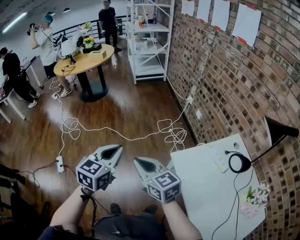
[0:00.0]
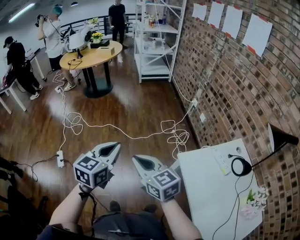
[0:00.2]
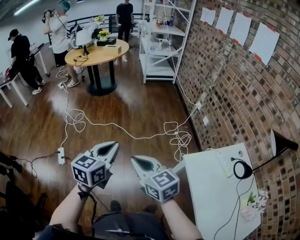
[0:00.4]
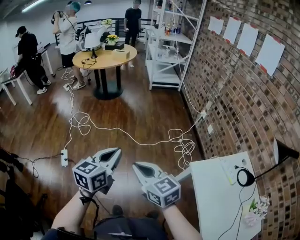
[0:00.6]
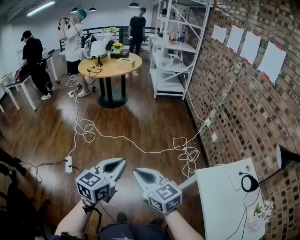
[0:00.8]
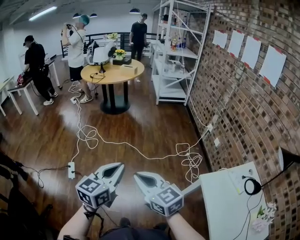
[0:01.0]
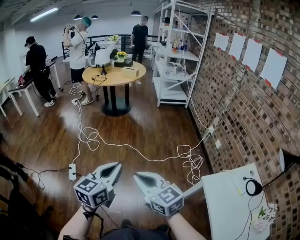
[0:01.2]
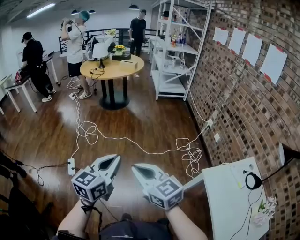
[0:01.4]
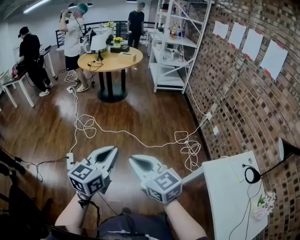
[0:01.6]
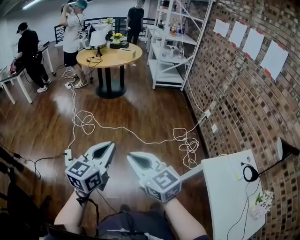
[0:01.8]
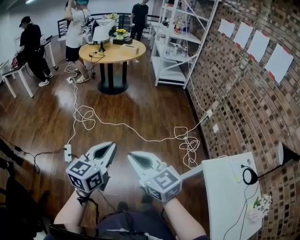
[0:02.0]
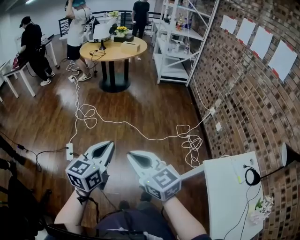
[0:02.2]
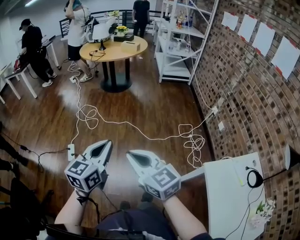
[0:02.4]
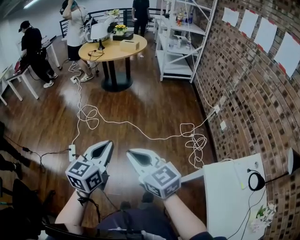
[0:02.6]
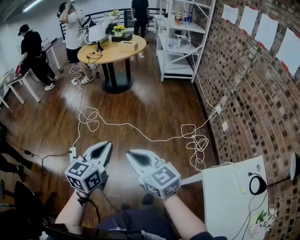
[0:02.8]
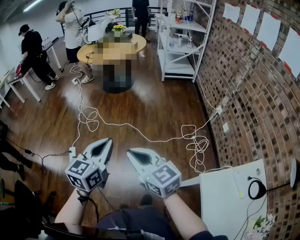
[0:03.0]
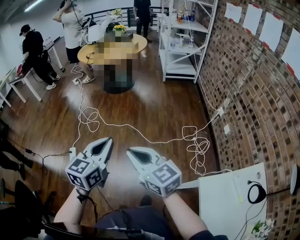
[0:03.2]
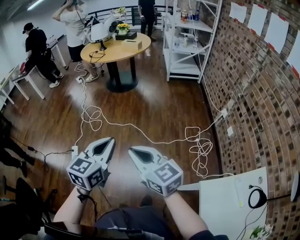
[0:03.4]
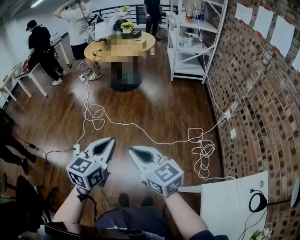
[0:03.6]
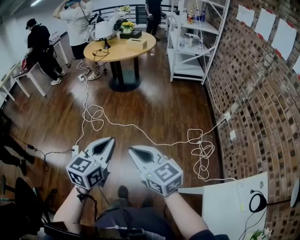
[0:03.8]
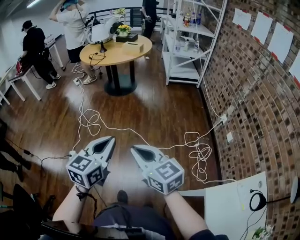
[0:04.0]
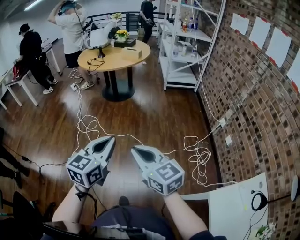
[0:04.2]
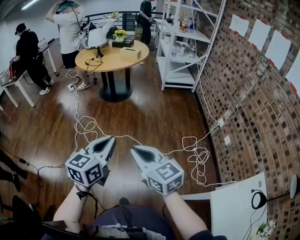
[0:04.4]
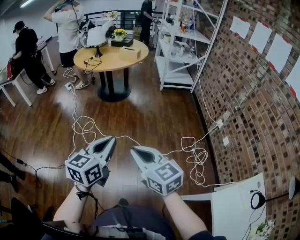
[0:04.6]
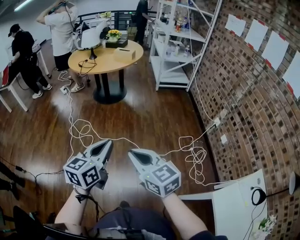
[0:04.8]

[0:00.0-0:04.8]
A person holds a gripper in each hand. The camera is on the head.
0:00.0 to 0:01.6: Both grippers travel together to the left, some 25 cm.
0:01.6 to 0:03.2: The two grippers go some 15 cm to the right and forward.
0:03.2 to 0:04.8: Both grippers move forward and to the left, some 20 cm.

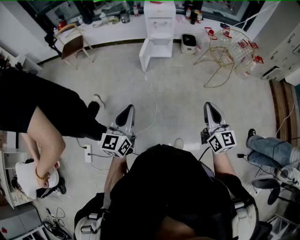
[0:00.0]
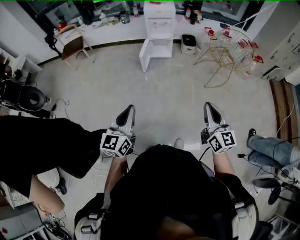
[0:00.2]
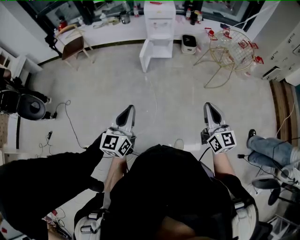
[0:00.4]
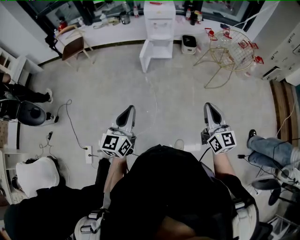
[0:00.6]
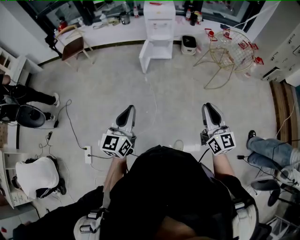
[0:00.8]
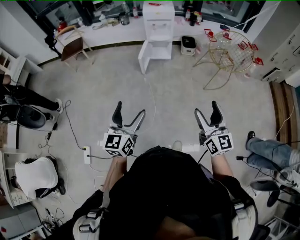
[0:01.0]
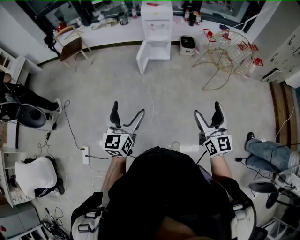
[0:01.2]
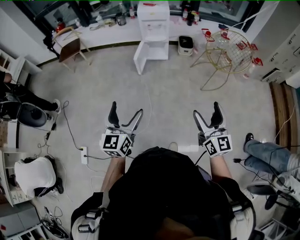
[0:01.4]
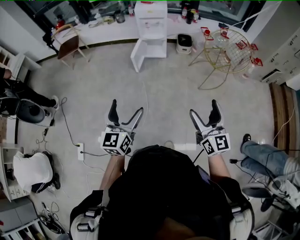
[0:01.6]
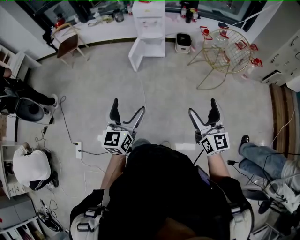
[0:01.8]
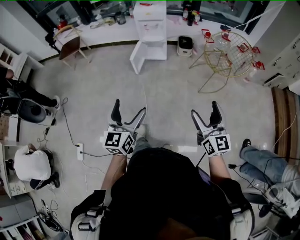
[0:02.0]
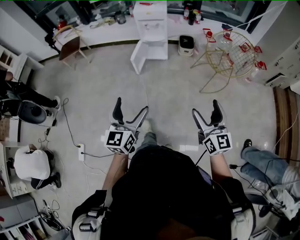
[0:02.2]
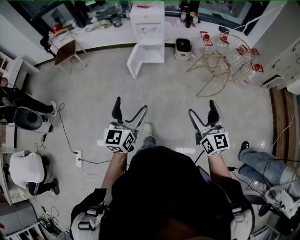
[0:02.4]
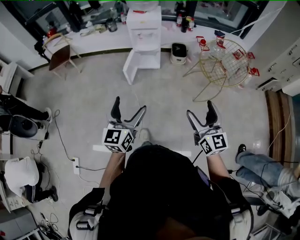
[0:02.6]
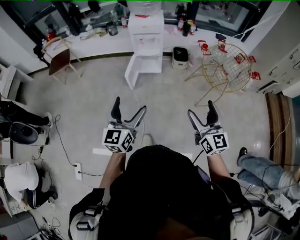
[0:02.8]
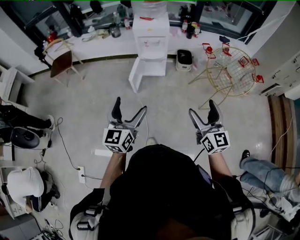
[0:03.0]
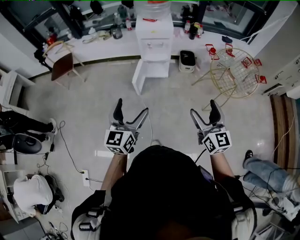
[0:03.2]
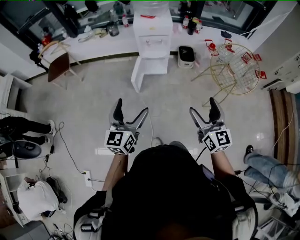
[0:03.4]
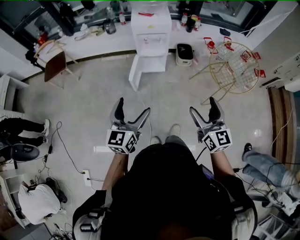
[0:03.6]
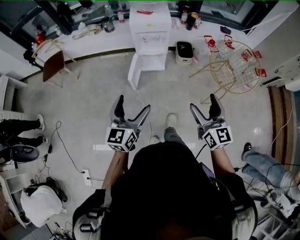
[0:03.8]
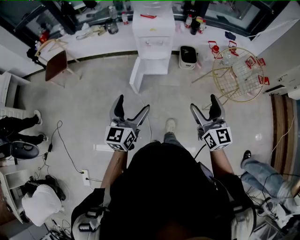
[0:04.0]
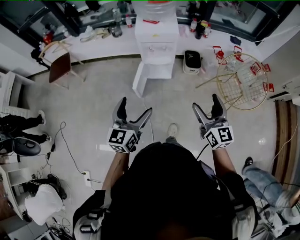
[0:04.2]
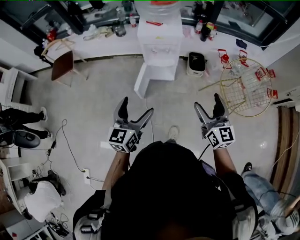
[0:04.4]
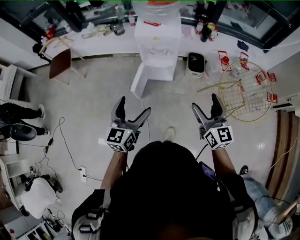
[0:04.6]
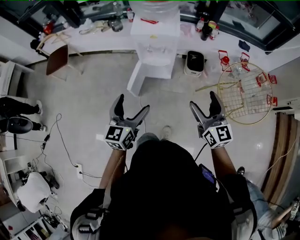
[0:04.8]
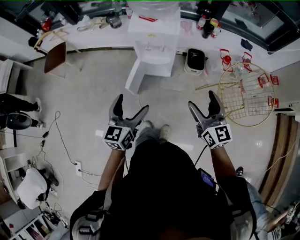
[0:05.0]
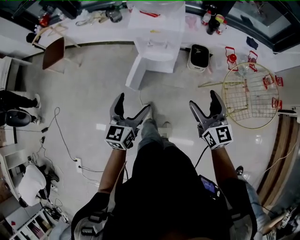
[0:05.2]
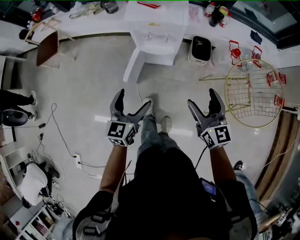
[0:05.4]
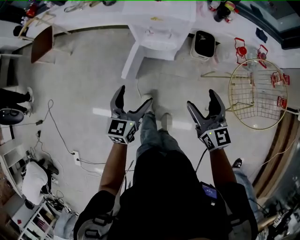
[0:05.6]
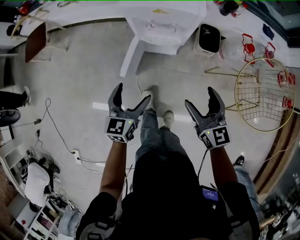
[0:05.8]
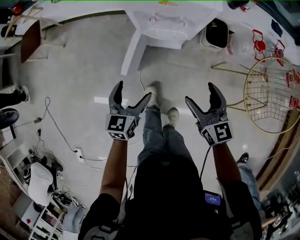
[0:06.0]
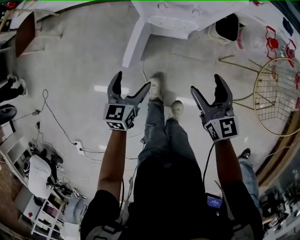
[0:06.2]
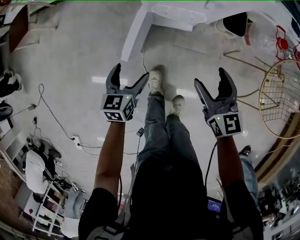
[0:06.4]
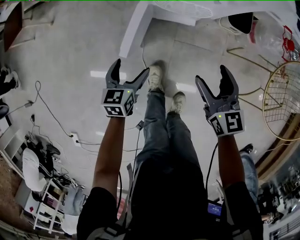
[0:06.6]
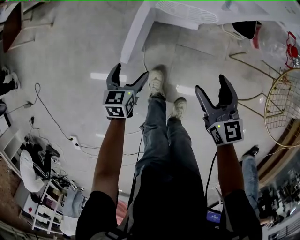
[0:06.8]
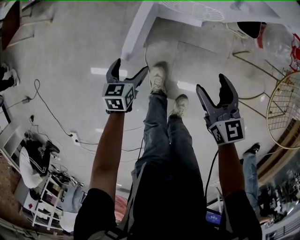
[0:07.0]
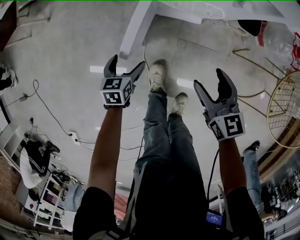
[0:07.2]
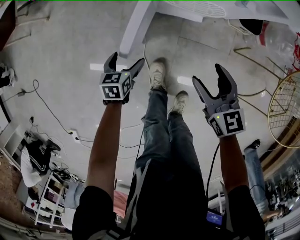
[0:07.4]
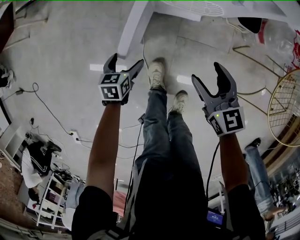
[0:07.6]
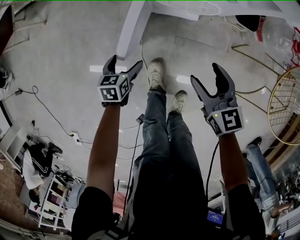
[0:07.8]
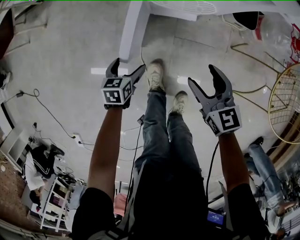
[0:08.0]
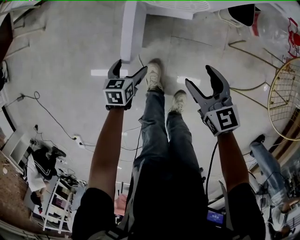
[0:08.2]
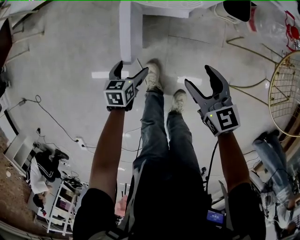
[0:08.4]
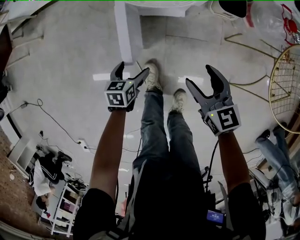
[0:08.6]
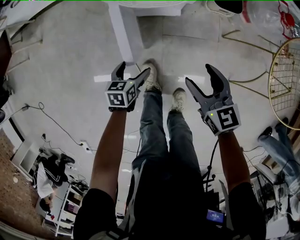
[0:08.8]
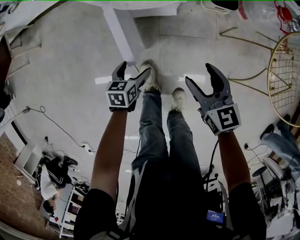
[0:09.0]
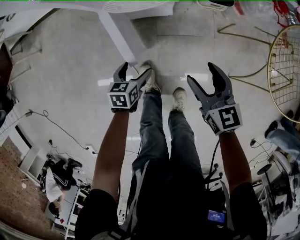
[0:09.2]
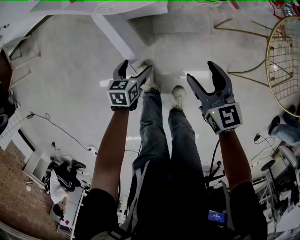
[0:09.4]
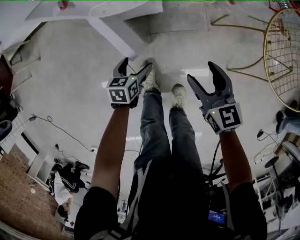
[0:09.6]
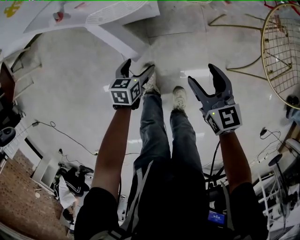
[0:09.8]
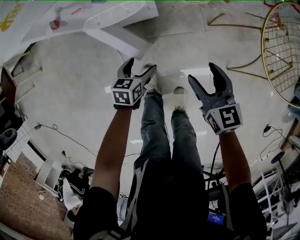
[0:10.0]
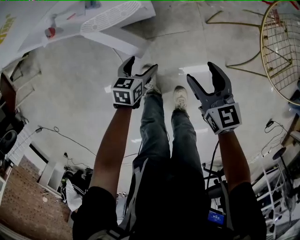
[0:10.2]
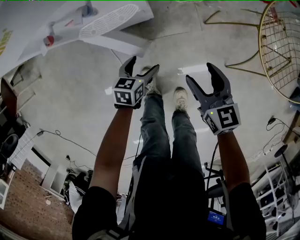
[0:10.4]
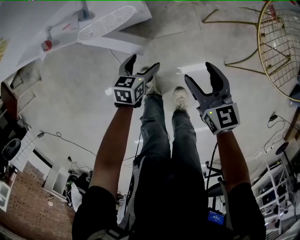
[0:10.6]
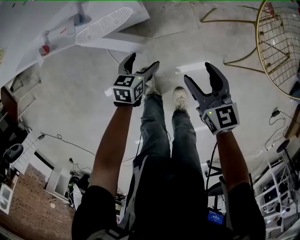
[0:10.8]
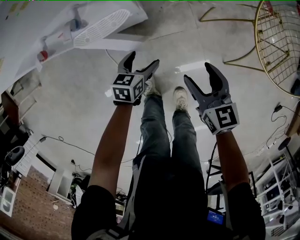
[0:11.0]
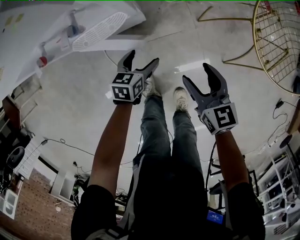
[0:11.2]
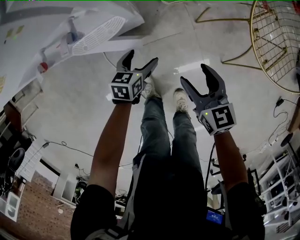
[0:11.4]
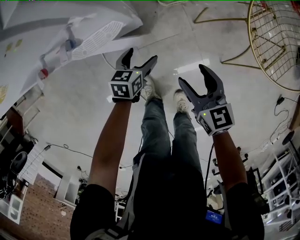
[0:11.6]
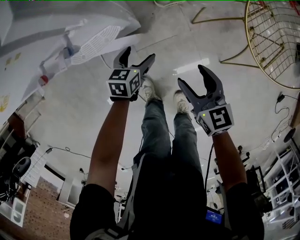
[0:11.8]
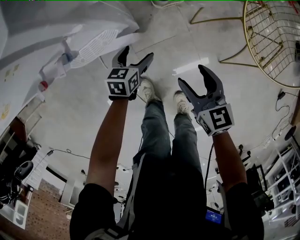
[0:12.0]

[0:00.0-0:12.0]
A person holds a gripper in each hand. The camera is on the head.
0:00.0 to 0:01.6: The grippers both shift to the right by about 10 cm. The left gripper opens up. Meanwhile the right gripper opens.
0:01.6 to 0:03.0: The two grippers go roughly 25 cm forward.
0:03.0 to 0:04.4: Both grippers travel together forward, roughly 25 cm.
0:04.4 to 0:06.0: Both grippers travel together downward and forward, some 35 cm. The right gripper rotates approximately 20 degrees.
0:06.0 to 0:07.6: The left gripper travels downward by approximately 30 cm, and rotates some 30 degrees; the right gripper moves downward, roughly 20 cm.
0:07.6 to 0:09.0: Both grippers move to the right, approximately 10 cm.
0:09.0 to 0:10.4: The left gripper heads to the right and forward, covering about 15 cm, while the right gripper shifts roughly 10 cm to the right.
0:10.4 to 0:12.0: The left gripper goes roughly 10 cm forward.

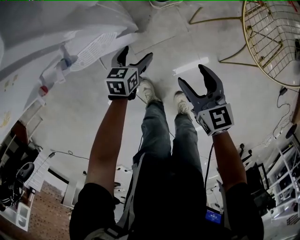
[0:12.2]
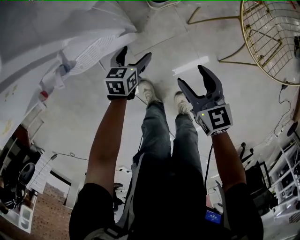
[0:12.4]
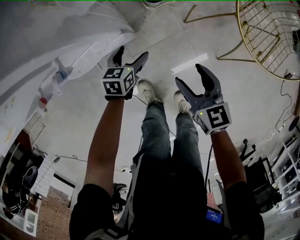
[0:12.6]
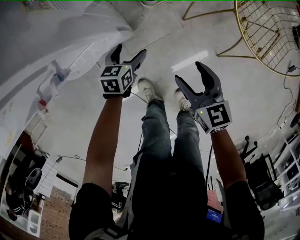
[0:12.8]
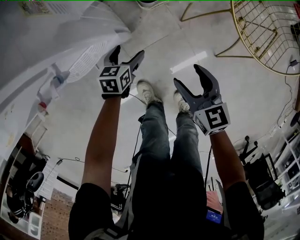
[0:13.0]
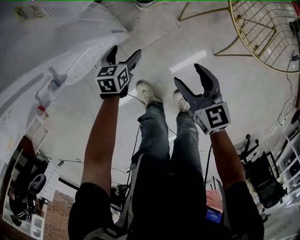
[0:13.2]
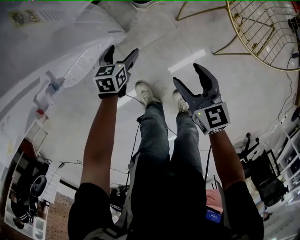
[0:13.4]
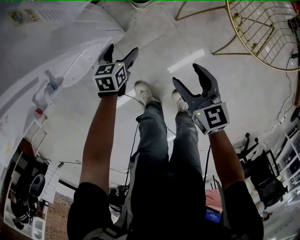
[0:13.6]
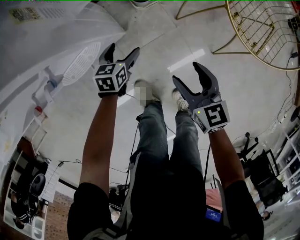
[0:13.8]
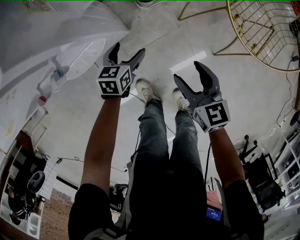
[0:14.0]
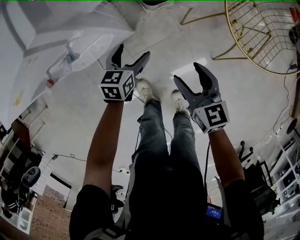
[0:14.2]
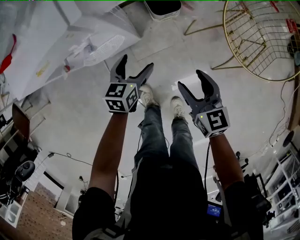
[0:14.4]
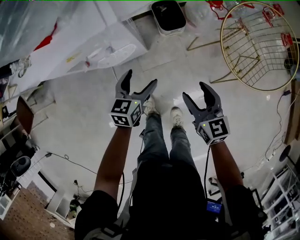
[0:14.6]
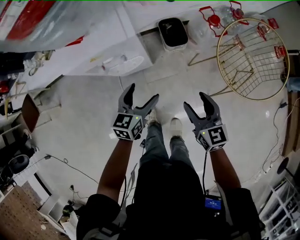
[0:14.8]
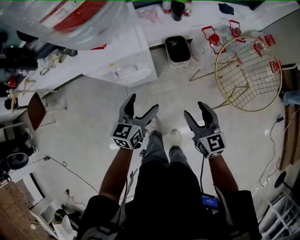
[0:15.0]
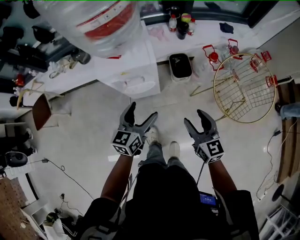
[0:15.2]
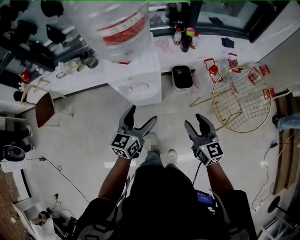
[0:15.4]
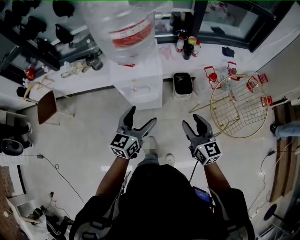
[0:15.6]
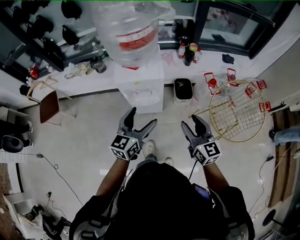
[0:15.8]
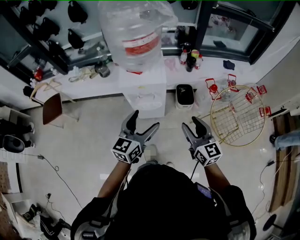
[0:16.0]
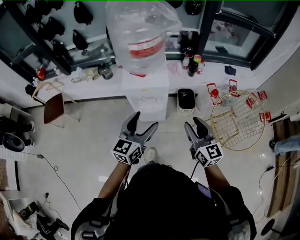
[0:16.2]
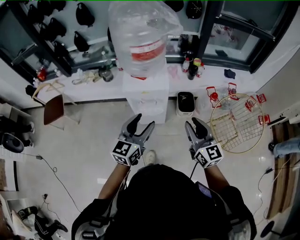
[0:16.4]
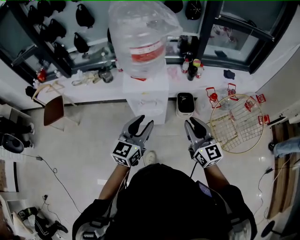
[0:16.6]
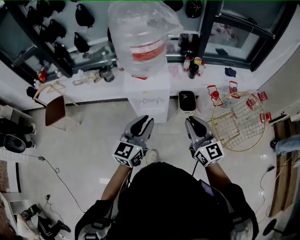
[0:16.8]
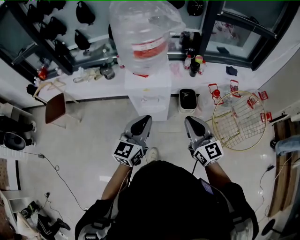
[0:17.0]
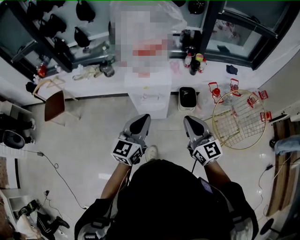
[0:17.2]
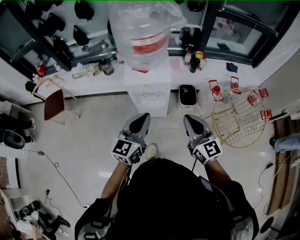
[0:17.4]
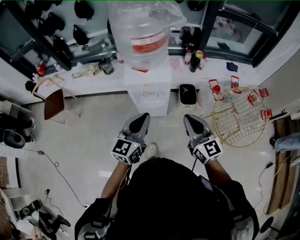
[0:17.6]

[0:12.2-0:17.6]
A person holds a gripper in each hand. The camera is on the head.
0:12.2 to 0:13.6: The grippers move only a little.
0:13.6 to 0:15.0: The two grippers go some 35 cm upward. The right gripper changes its angle by about 20 degrees. Meanwhile the left gripper turns by approximately 30 degrees.
0:15.0 to 0:16.2: The grippers both shift upward by some 20 cm. The left gripper changes its angle by about 20 degrees.
0:16.2 to 0:17.6: The right gripper moves roughly 5 cm, and closes up. The left gripper closes up.

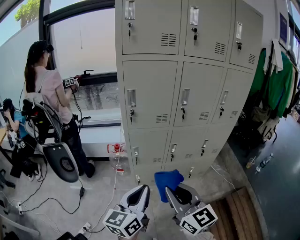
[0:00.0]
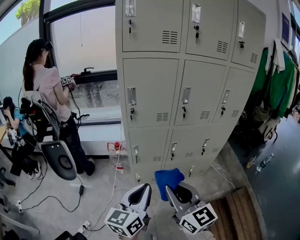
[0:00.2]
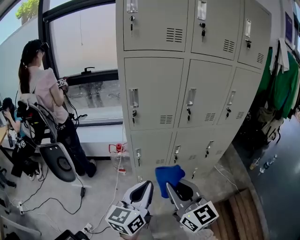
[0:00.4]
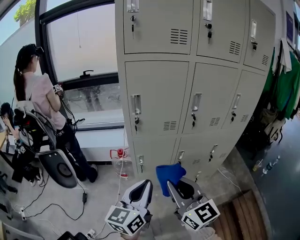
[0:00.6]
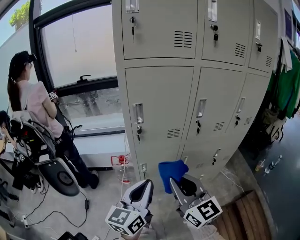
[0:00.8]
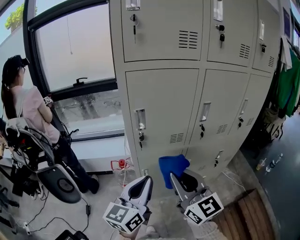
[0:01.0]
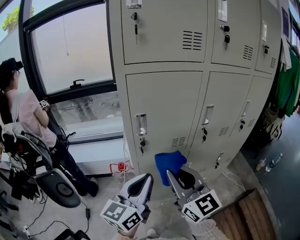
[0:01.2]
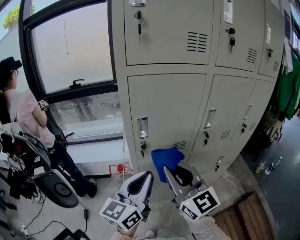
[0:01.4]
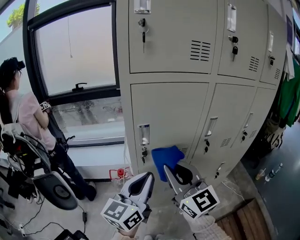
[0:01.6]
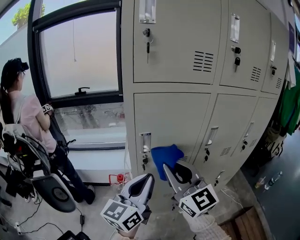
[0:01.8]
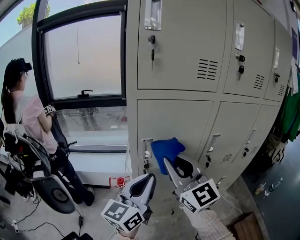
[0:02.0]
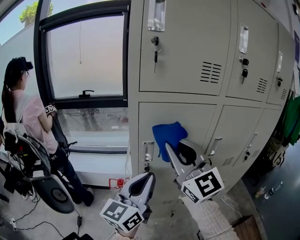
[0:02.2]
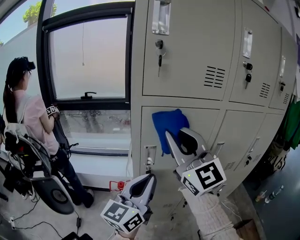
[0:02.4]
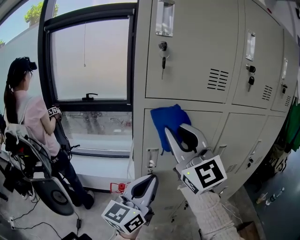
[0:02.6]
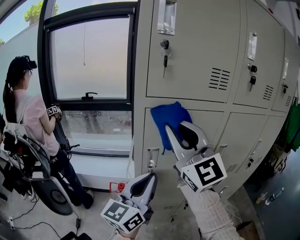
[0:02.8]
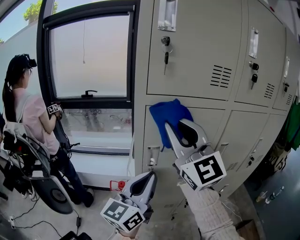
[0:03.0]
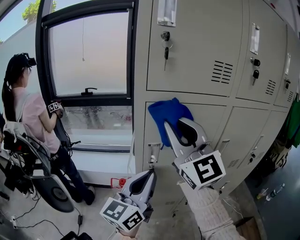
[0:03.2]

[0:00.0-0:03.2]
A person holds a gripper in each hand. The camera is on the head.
0:00.0 to 0:01.6: Both grippers travel together forward, approximately 30 cm.
0:01.6 to 0:03.2: The right gripper is displaced upward and forward by some 20 cm, and rotates roughly 20 degrees, while the left gripper heads forward, covering about 5 cm.
